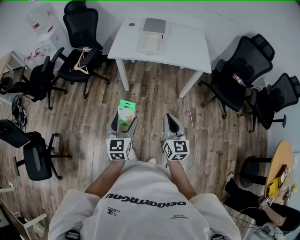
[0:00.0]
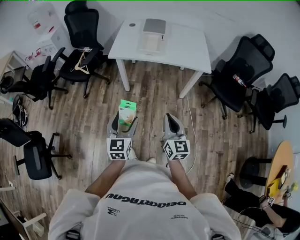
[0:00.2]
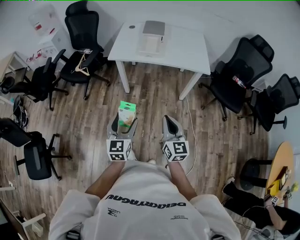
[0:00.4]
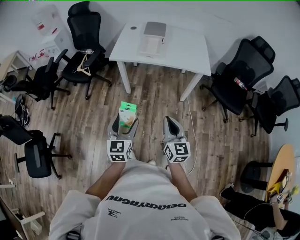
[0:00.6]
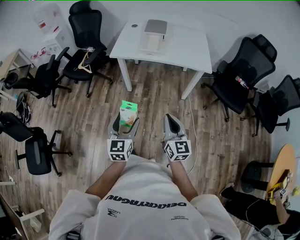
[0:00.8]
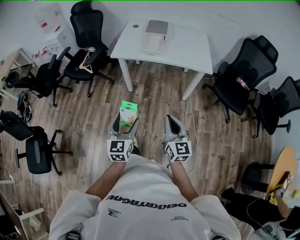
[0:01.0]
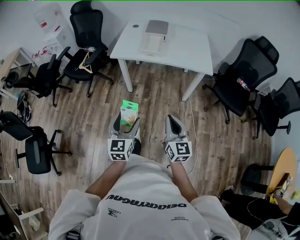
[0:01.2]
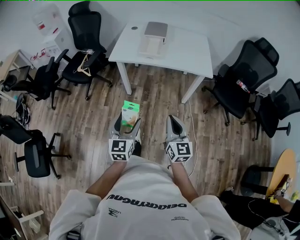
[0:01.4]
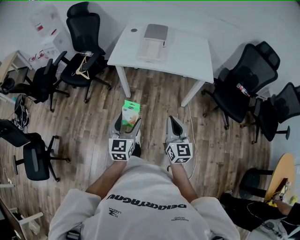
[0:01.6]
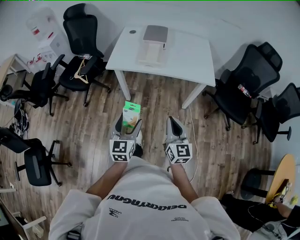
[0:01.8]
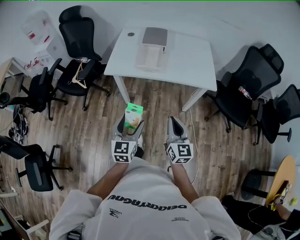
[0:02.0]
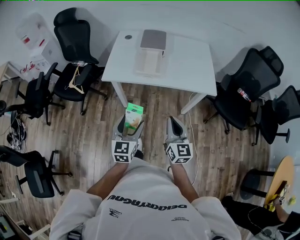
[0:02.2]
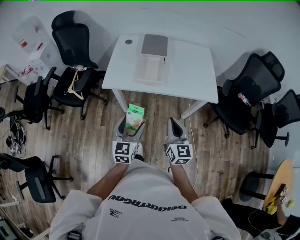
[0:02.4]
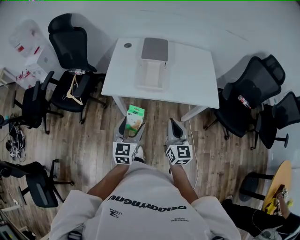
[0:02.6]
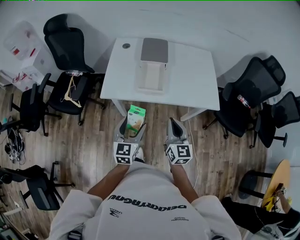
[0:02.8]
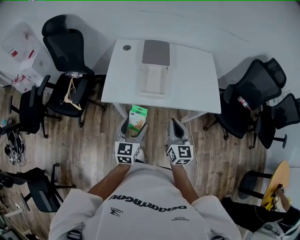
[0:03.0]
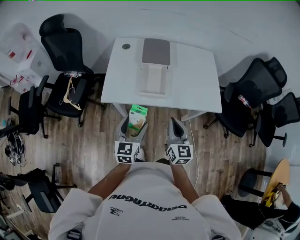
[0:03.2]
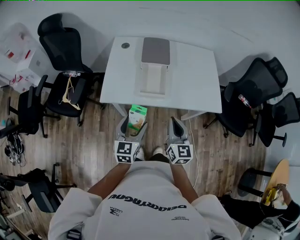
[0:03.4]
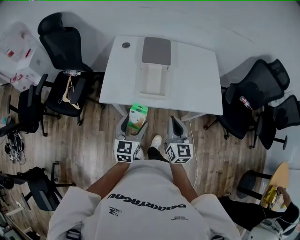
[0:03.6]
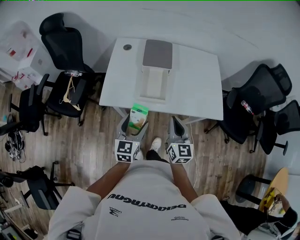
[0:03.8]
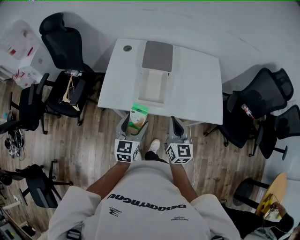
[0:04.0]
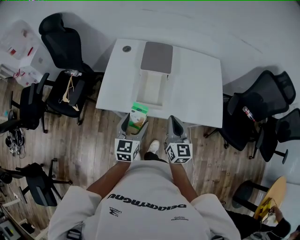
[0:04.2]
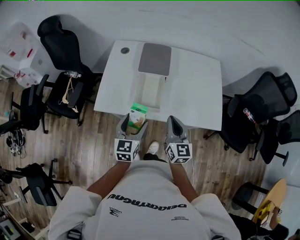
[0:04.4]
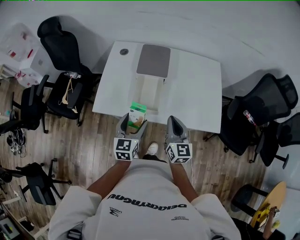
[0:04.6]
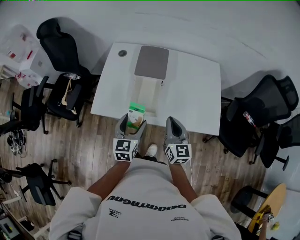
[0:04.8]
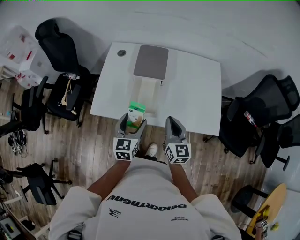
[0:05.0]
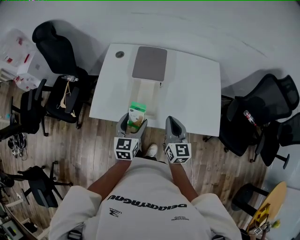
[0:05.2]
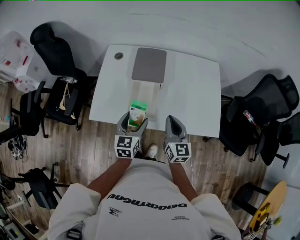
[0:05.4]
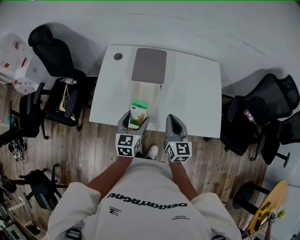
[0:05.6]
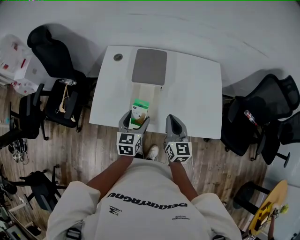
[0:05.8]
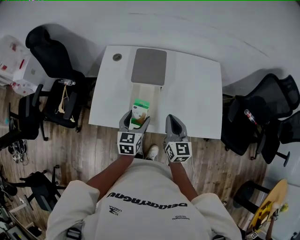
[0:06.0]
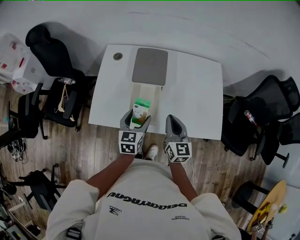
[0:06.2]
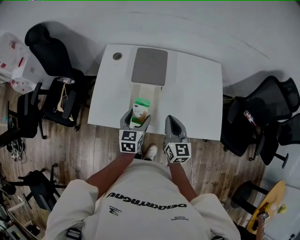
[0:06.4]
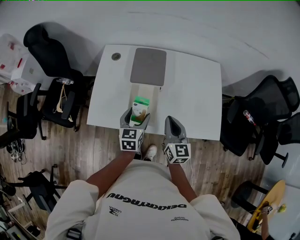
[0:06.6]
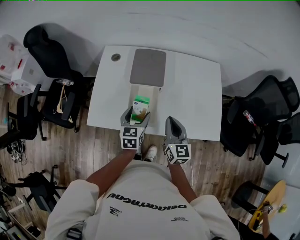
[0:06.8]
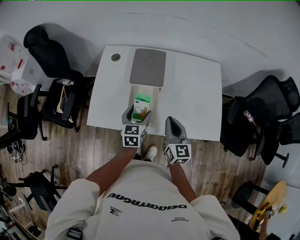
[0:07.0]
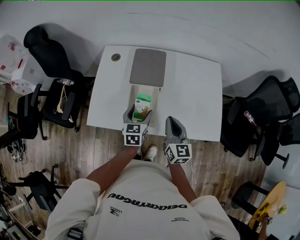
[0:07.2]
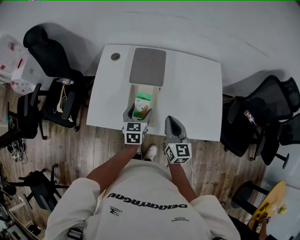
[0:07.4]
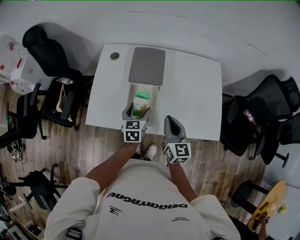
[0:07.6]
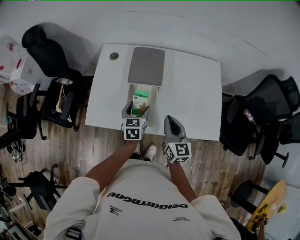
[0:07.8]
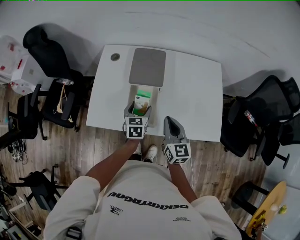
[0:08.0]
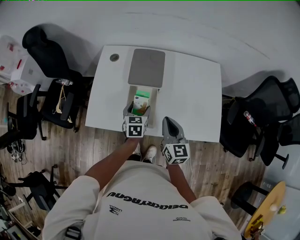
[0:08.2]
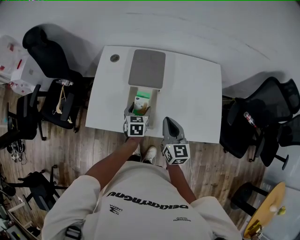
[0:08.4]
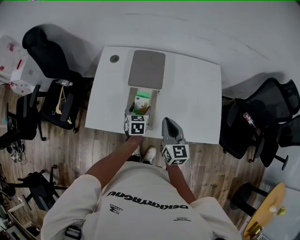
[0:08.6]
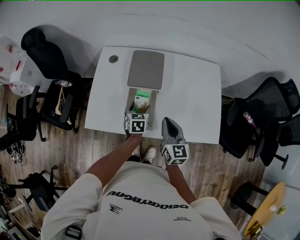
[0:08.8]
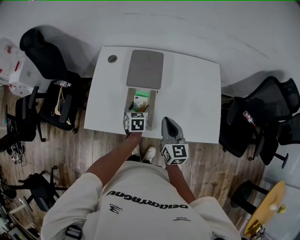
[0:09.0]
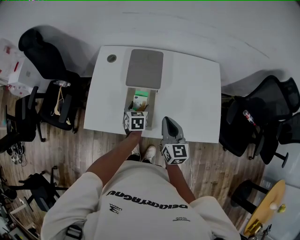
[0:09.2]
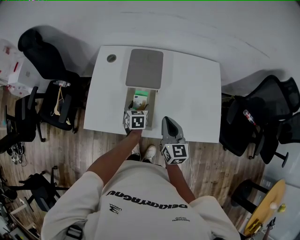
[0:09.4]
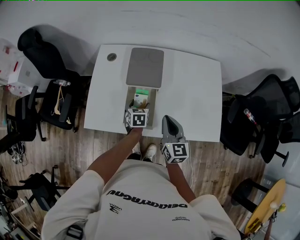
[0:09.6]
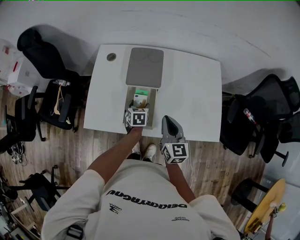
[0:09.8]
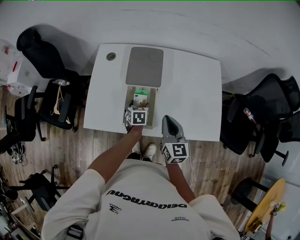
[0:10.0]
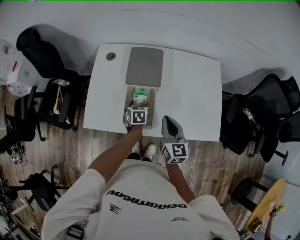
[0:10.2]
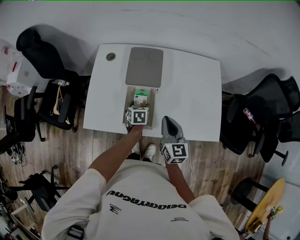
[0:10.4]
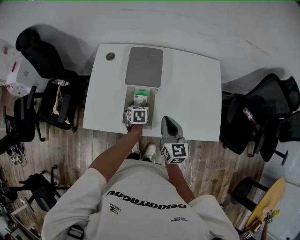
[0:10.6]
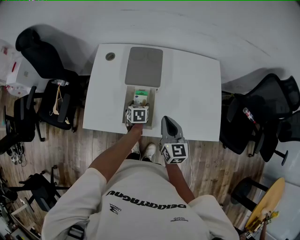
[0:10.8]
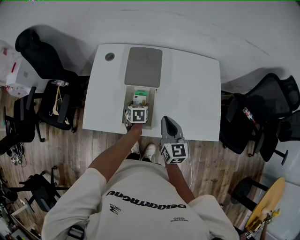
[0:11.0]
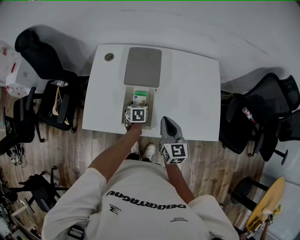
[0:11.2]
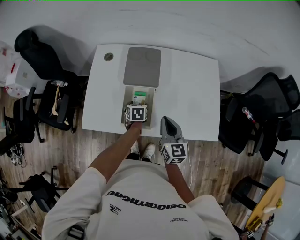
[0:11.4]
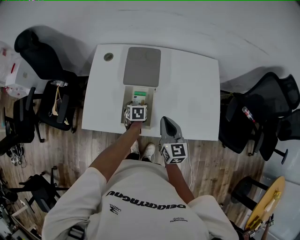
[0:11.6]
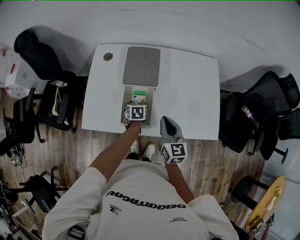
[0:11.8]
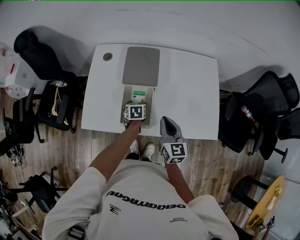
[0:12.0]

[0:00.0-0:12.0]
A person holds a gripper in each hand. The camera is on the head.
0:00.0 to 0:01.6: The right gripper moves forward, approximately 5 cm. Meanwhile the left gripper heads forward and to the right, covering some 5 cm.
0:01.6 to 0:03.0: The grippers both shift forward by roughly 30 cm.
0:03.0 to 0:04.4: The grippers both shift forward by about 15 cm.
0:04.4 to 0:06.0: The grippers both shift forward by roughly 10 cm.
0:06.0 to 0:07.6: The left gripper heads forward, covering approximately 5 cm.
0:07.6 to 0:09.0: The left gripper goes some 5 cm downward.
0:09.0 to 0:10.4: There are only small adjustments of the grippers.
0:10.4 to 0:12.0: There are only small adjustments of the grippers.

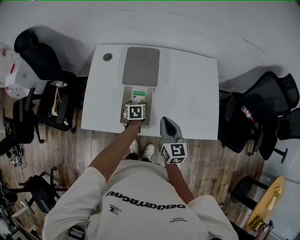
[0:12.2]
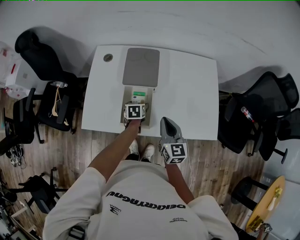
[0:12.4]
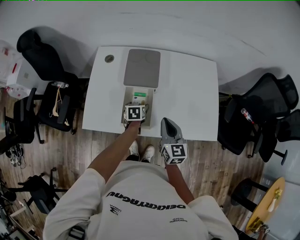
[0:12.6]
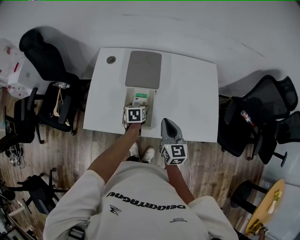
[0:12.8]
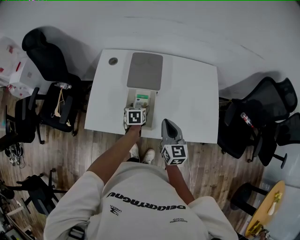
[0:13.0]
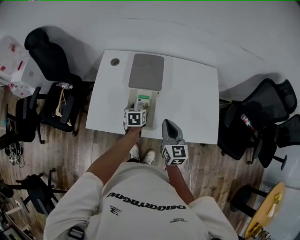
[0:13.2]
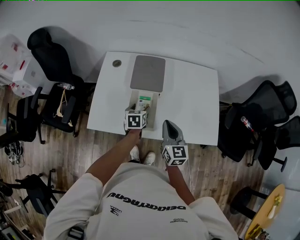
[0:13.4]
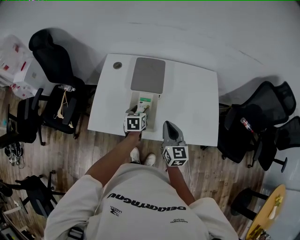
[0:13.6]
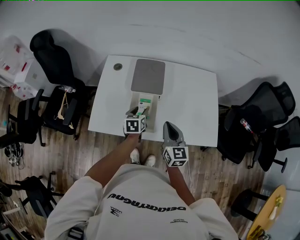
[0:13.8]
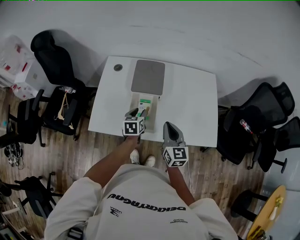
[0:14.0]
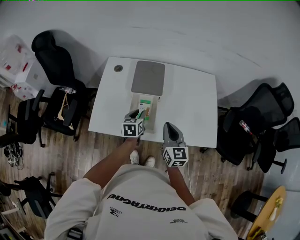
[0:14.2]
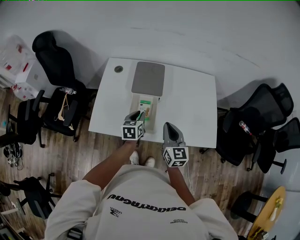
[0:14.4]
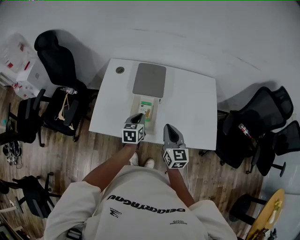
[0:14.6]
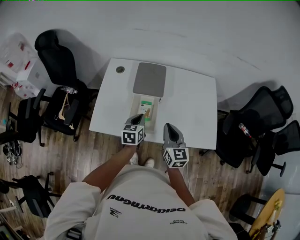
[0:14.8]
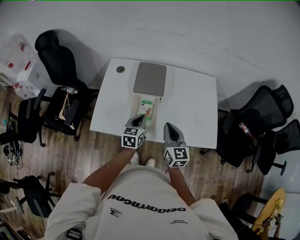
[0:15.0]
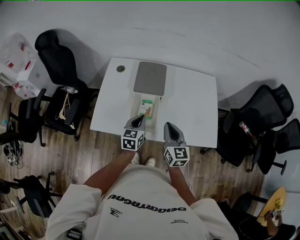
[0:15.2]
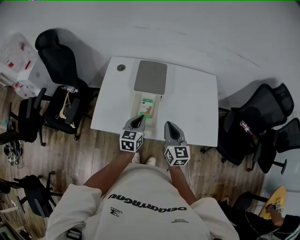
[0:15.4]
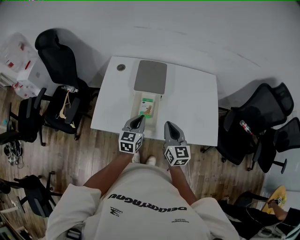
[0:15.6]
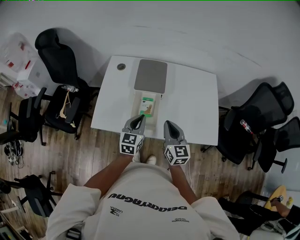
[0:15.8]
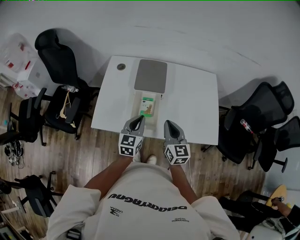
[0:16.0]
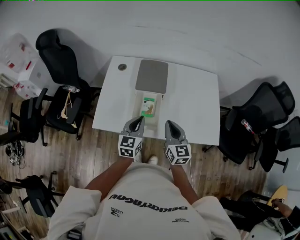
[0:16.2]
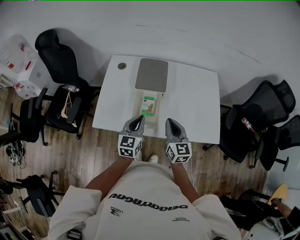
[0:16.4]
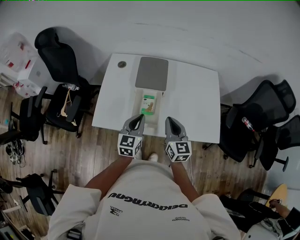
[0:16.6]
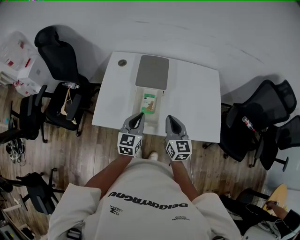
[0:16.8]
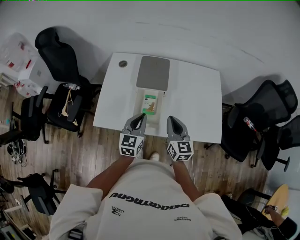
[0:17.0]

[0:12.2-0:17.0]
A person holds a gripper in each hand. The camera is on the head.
0:12.2 to 0:13.8: The left gripper goes roughly 10 cm upward, and closes.
0:13.8 to 0:15.4: The left gripper shifts about 10 cm backward and upward, and closes up.
0:15.4 to 0:17.0: The grippers move only a little.

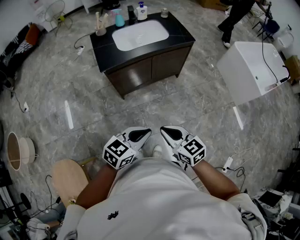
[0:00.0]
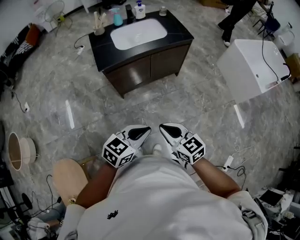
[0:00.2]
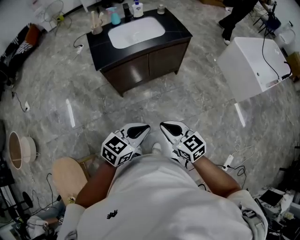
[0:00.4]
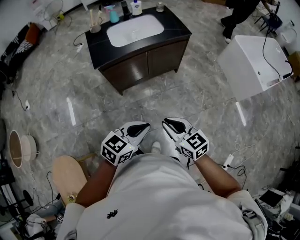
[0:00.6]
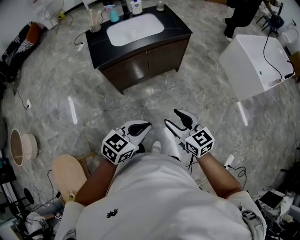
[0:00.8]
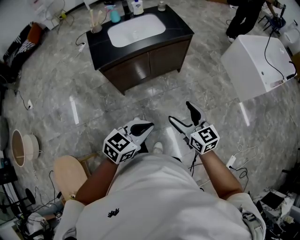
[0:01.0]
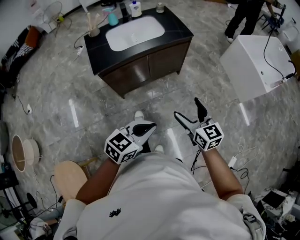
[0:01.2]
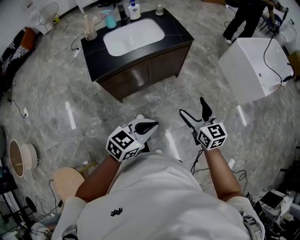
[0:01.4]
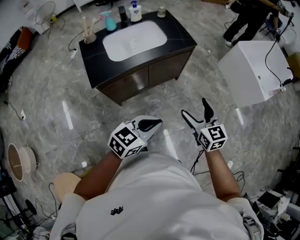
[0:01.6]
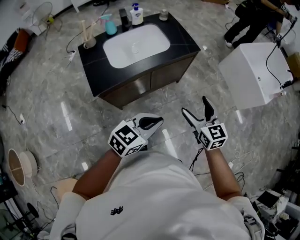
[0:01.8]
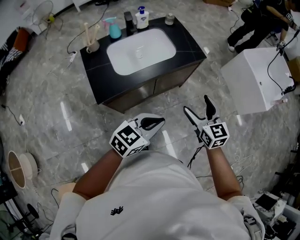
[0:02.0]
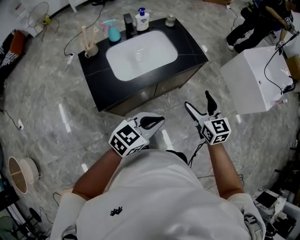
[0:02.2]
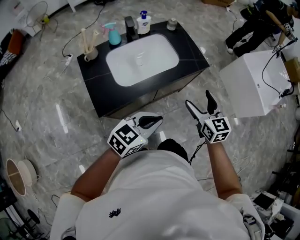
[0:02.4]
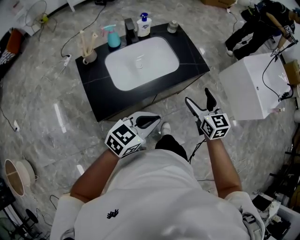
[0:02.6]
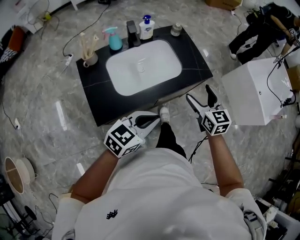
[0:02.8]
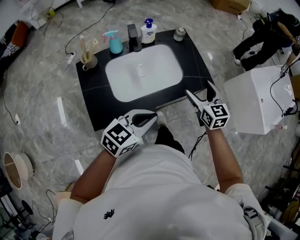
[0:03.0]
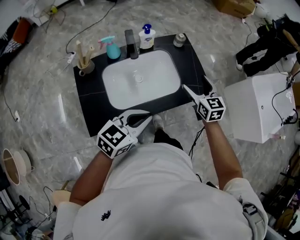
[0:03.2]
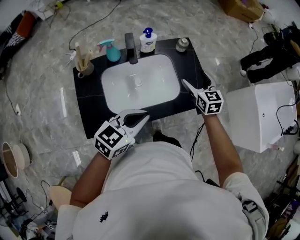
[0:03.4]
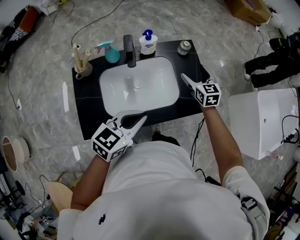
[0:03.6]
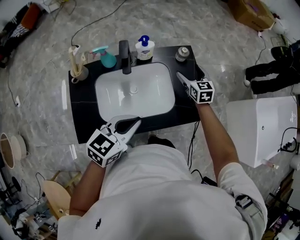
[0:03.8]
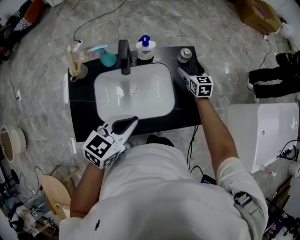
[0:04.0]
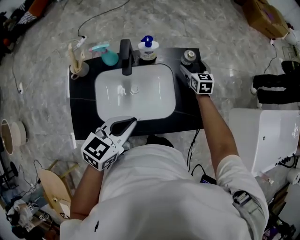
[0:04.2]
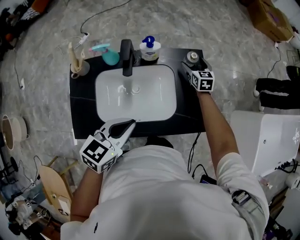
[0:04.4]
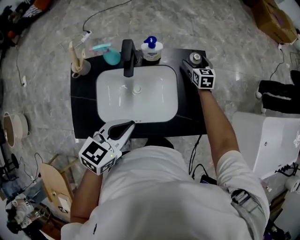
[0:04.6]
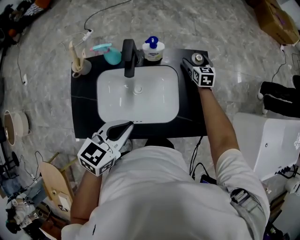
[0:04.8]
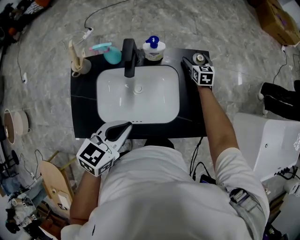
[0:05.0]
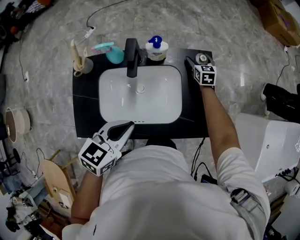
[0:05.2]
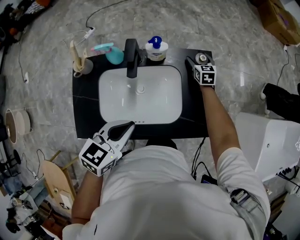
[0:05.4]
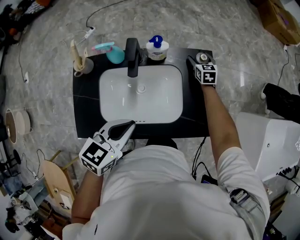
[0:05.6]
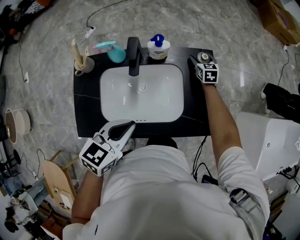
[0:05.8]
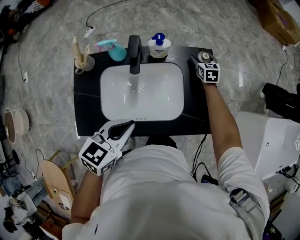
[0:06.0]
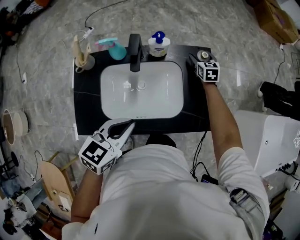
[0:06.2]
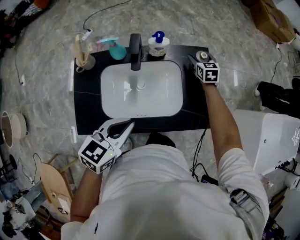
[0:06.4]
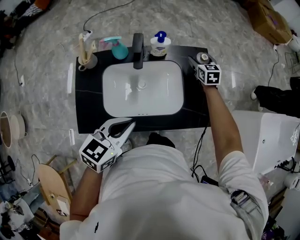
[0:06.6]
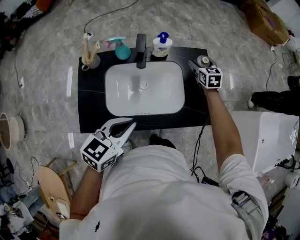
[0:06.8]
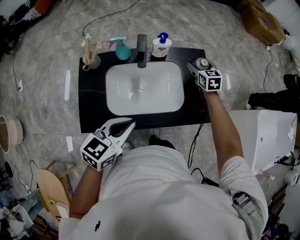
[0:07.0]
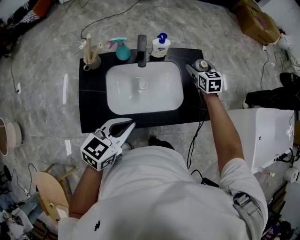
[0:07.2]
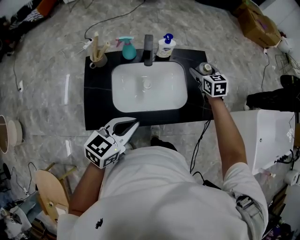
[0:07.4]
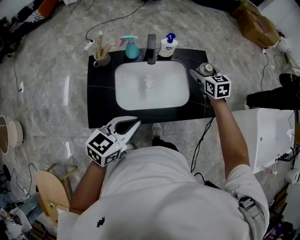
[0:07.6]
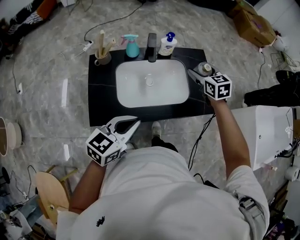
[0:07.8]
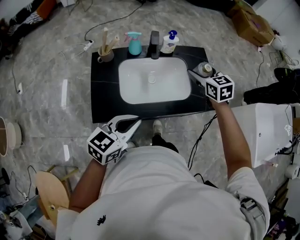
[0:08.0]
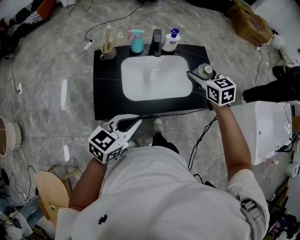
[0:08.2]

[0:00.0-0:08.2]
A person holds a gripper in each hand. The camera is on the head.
0:00.0 to 0:01.6: The left gripper is displaced forward by roughly 20 cm, while the right gripper shifts some 30 cm forward and to the right, turns by approximately 30 degrees, and opens its fingers.
0:01.6 to 0:03.2: Both grippers are carried forward and to the left, some 40 cm.
0:03.2 to 0:05.0: The left gripper shifts approximately 15 cm forward, and swivels approximately 30 degrees. Meanwhile the right gripper travels forward and downward by roughly 40 cm.
0:05.0 to 0:06.6: The right gripper goes approximately 10 cm upward and backward; the left gripper heads backward, covering about 5 cm.
0:06.6 to 0:08.2: The right gripper heads backward and upward, covering approximately 35 cm. Meanwhile the left gripper shifts about 20 cm backward and to the left.
